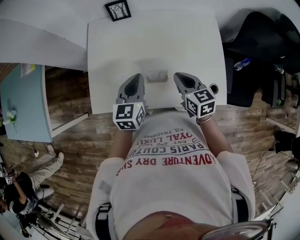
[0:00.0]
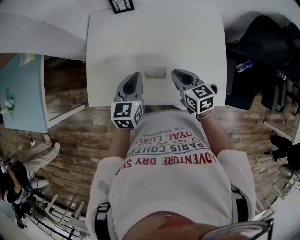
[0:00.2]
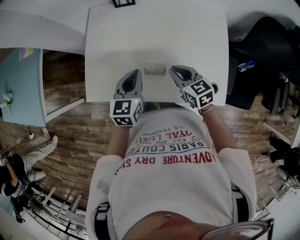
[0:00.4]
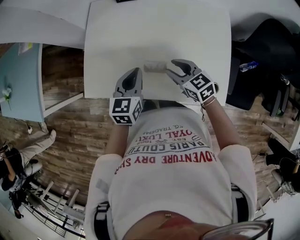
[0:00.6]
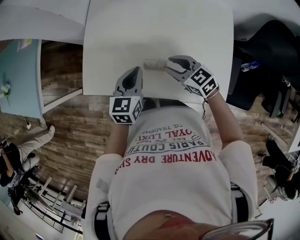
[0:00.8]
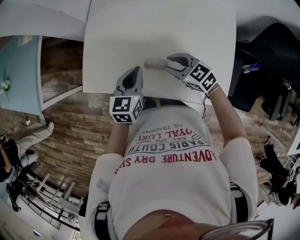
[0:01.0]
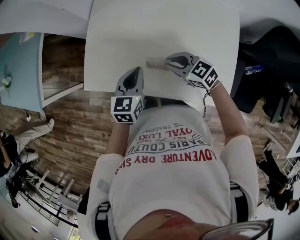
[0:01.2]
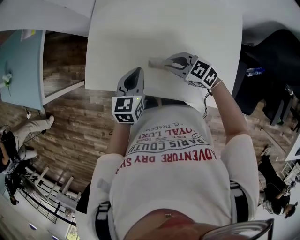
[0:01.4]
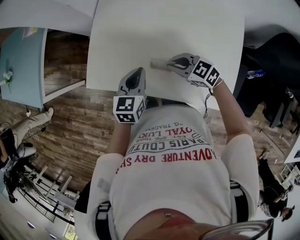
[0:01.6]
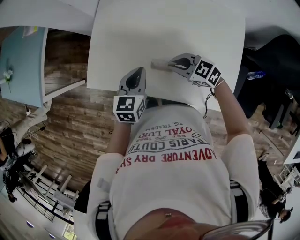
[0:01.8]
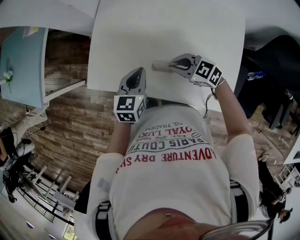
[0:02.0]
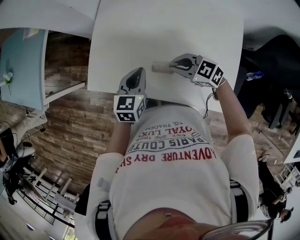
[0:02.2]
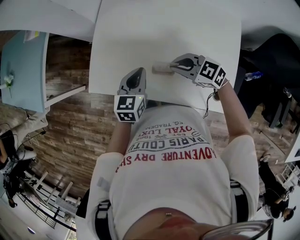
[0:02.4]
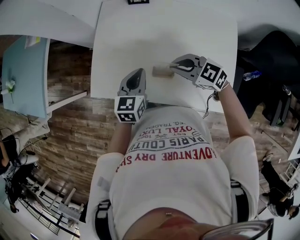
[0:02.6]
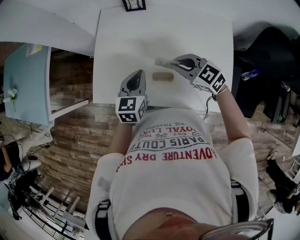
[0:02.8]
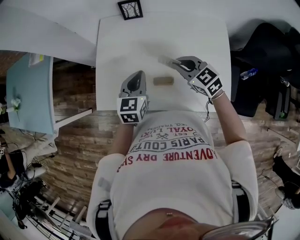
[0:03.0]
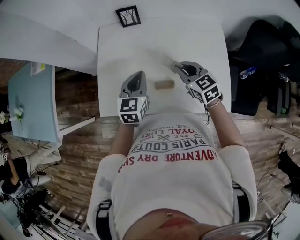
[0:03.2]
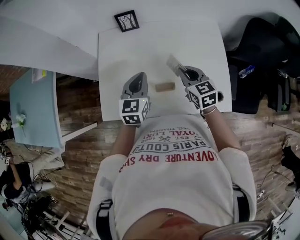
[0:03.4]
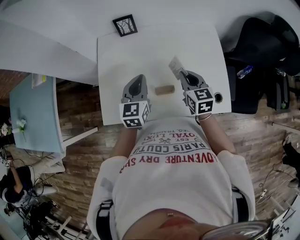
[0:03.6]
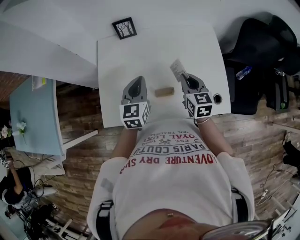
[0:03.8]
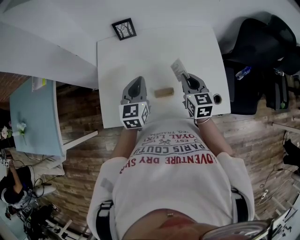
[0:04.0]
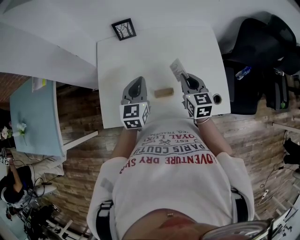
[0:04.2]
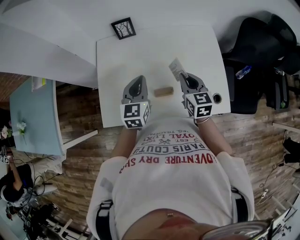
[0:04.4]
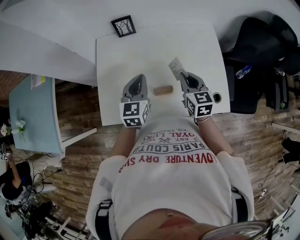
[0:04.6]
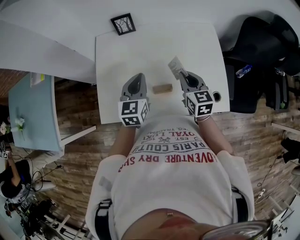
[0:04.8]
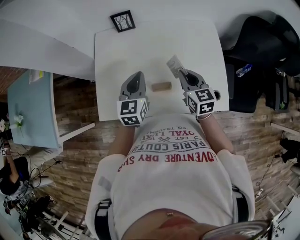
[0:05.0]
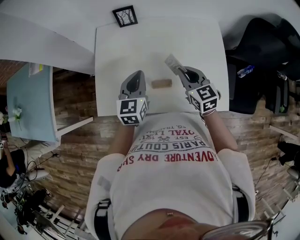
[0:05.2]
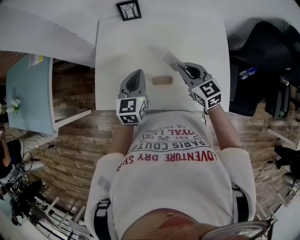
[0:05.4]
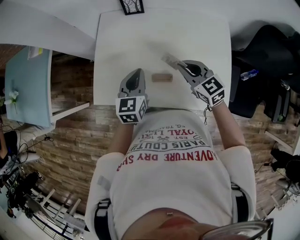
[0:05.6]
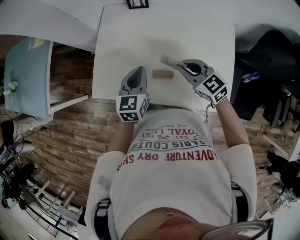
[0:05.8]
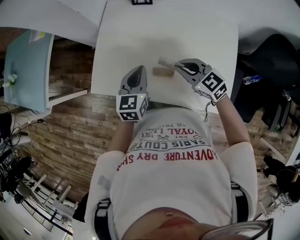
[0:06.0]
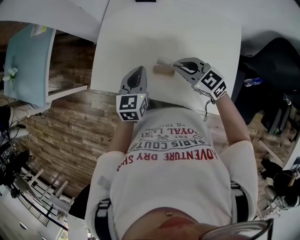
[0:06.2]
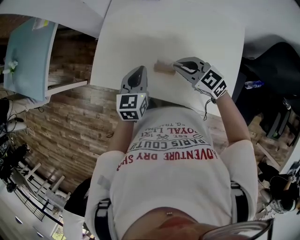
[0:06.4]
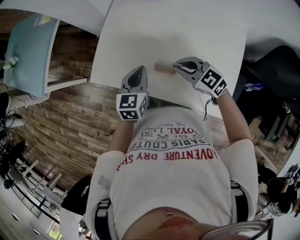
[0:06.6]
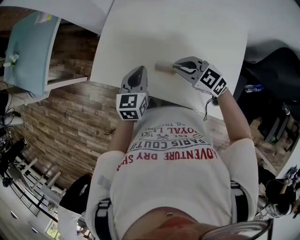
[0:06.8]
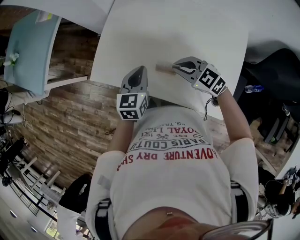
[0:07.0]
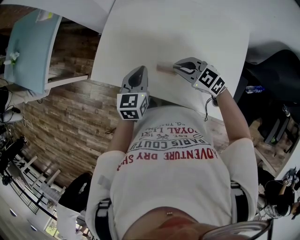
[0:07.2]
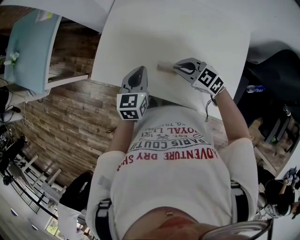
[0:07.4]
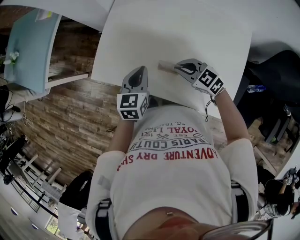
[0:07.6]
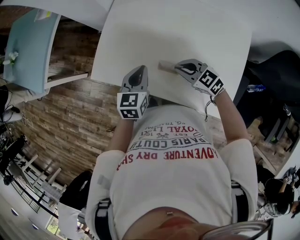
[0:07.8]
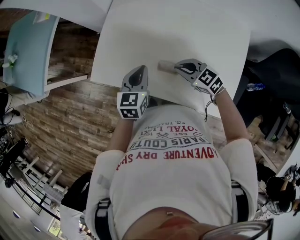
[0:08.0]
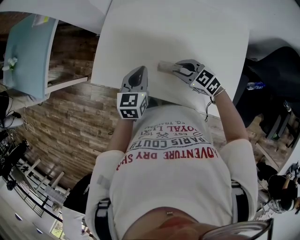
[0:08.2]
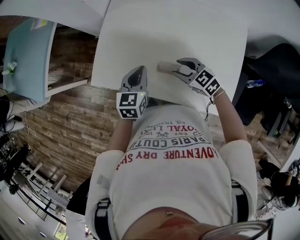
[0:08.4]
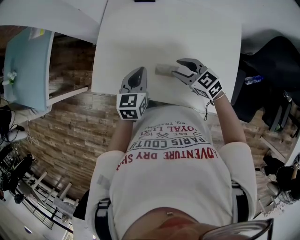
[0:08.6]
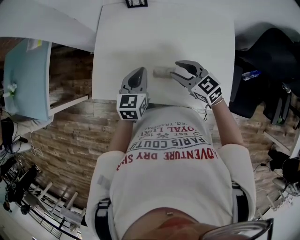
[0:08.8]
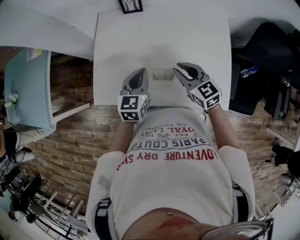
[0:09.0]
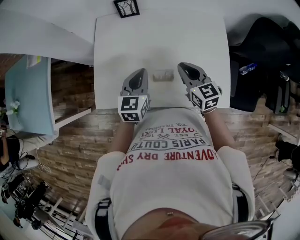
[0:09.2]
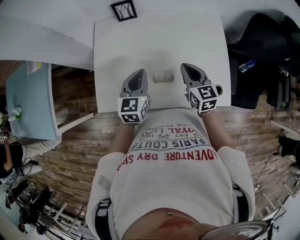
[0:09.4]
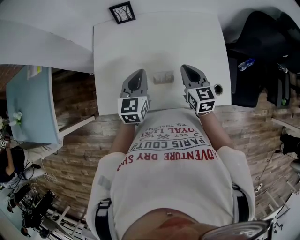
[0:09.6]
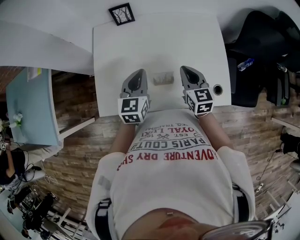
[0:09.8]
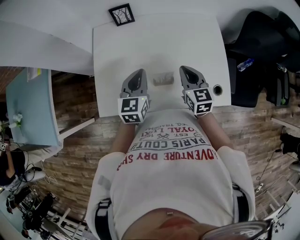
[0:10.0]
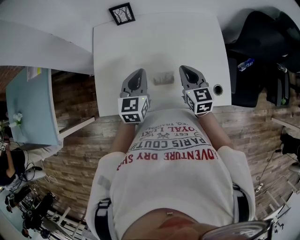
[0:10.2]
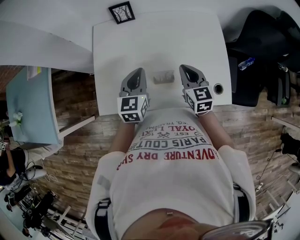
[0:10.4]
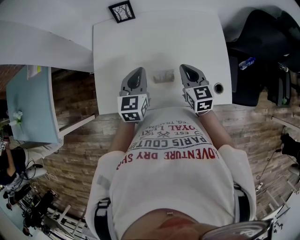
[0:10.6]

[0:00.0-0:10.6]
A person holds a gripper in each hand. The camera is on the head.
0.0 to 1.6 s: Both grippers travel together downward, about 5 cm. The right gripper changes its angle by roughly 60 degrees, and opens, then closes once more.
1.6 to 3.0 s: The left gripper is displaced upward by some 5 cm. The right gripper goes roughly 10 cm upward, and rotates approximately 30 degrees.
3.0 to 4.6 s: The right gripper shifts about 5 cm to the right, and rotates some 40 degrees.
4.6 to 6.0 s: The left gripper shifts by approximately 5 cm; the right gripper shifts by about 5 cm, and swivels about 50 degrees.
6.0 to 7.6 s: The right gripper travels downward by roughly 5 cm.
7.6 to 9.0 s: The right gripper moves upward, about 5 cm, and changes its angle by roughly 40 degrees; the left gripper shifts by approximately 5 cm.
9.0 to 10.6 s: The right gripper turns by some 30 degrees.

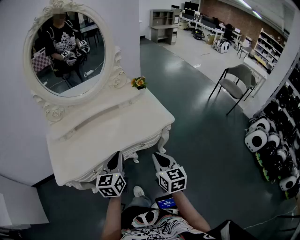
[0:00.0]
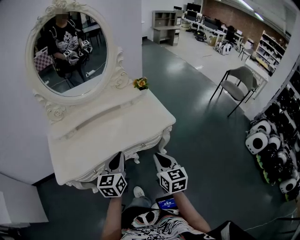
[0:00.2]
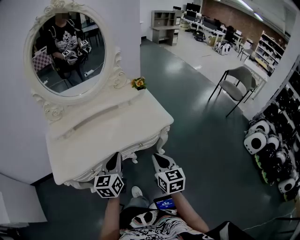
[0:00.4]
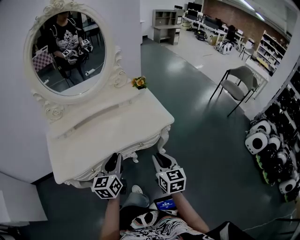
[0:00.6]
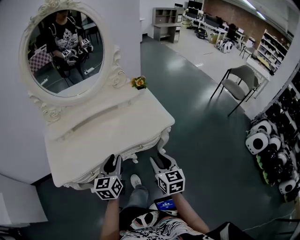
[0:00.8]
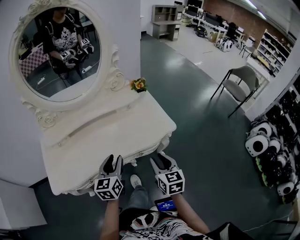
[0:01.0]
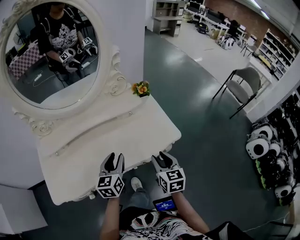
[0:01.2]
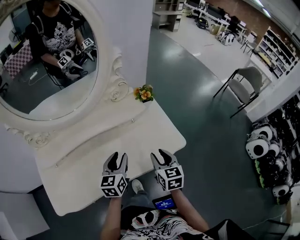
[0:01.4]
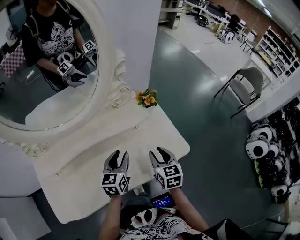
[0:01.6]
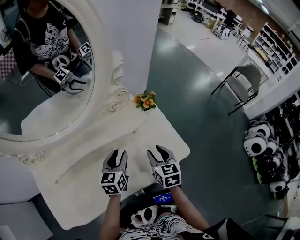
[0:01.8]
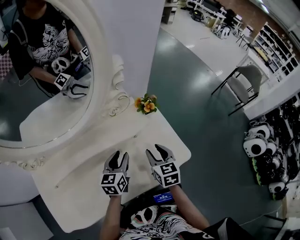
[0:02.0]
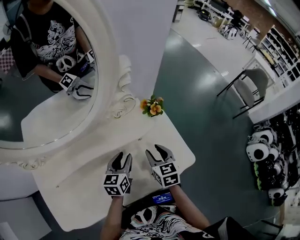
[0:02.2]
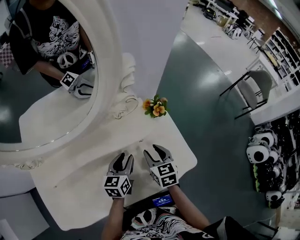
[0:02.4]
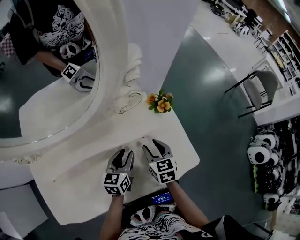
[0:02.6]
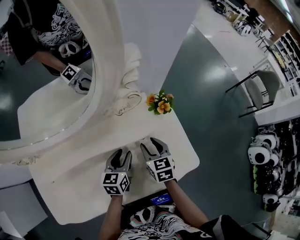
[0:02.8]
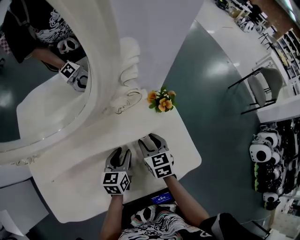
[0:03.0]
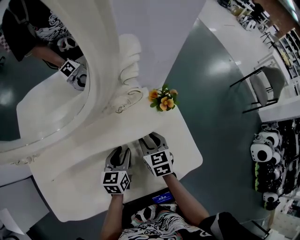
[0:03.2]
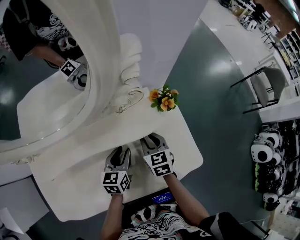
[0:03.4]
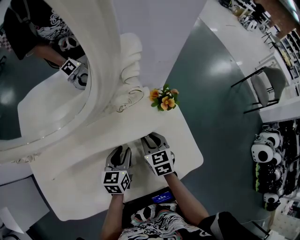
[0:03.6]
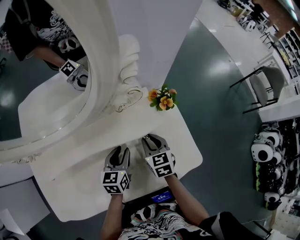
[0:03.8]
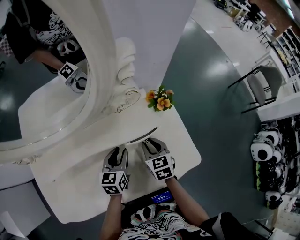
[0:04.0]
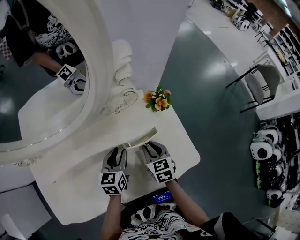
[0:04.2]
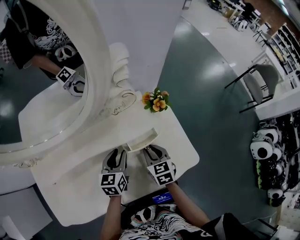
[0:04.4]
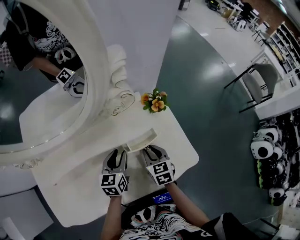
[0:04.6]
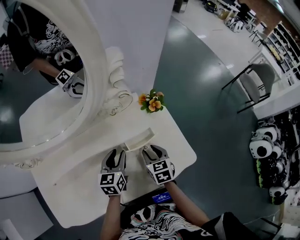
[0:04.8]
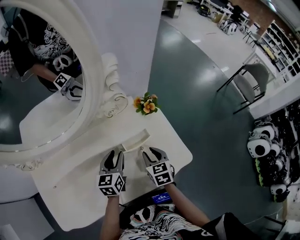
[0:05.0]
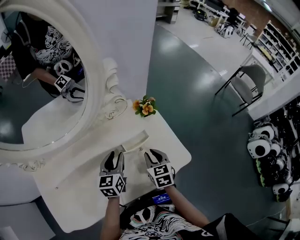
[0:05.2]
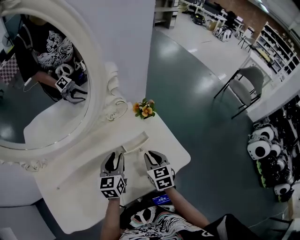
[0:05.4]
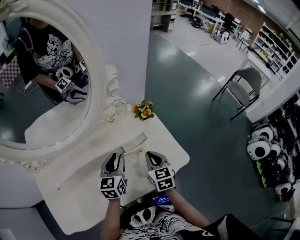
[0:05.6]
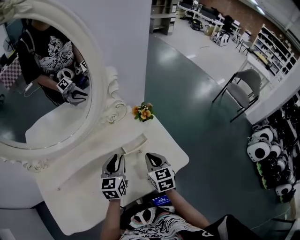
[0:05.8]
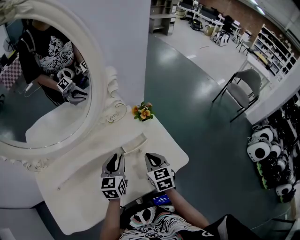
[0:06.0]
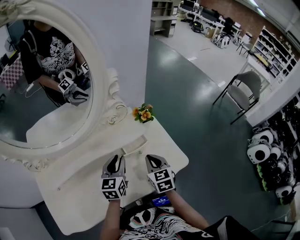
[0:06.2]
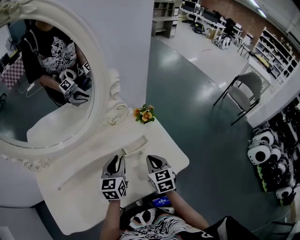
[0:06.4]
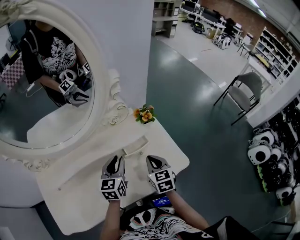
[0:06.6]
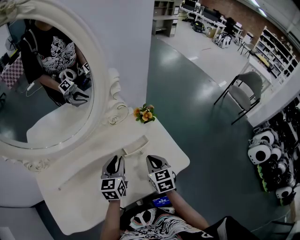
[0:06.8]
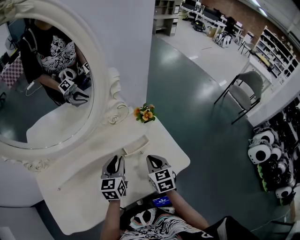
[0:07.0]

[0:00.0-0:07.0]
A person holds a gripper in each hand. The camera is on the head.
0.0 to 1.4 s: The grippers both shift forward by approximately 25 cm. The left gripper opens up. Meanwhile the right gripper opens.
1.4 to 2.8 s: The right gripper moves forward, downward and to the left, roughly 20 cm. Meanwhile the left gripper goes some 15 cm forward and downward.
2.8 to 4.2 s: The grippers make only small movements.
4.2 to 5.6 s: The grippers both shift upward by about 10 cm. The right gripper closes up.
5.6 to 7.0 s: The two grippers keep their place.

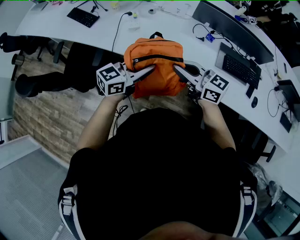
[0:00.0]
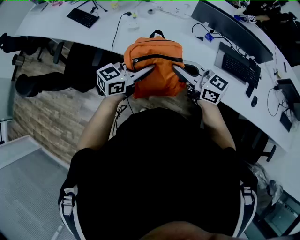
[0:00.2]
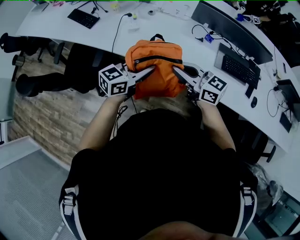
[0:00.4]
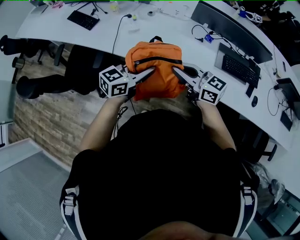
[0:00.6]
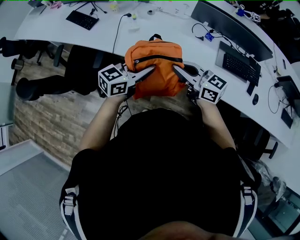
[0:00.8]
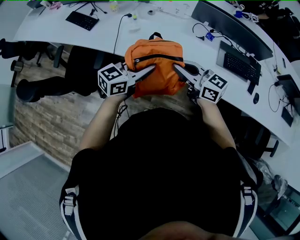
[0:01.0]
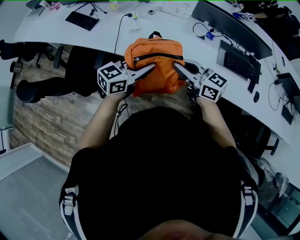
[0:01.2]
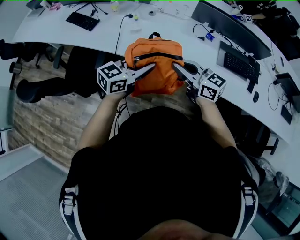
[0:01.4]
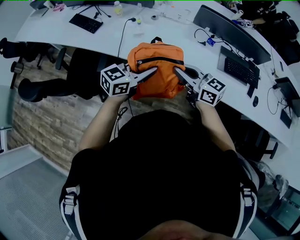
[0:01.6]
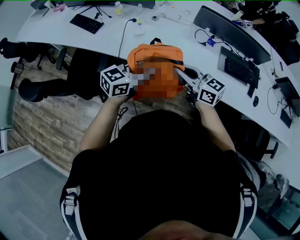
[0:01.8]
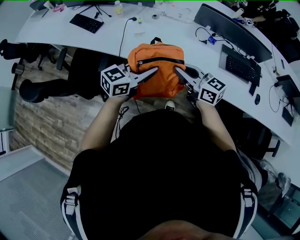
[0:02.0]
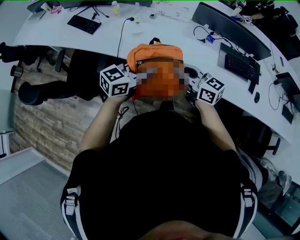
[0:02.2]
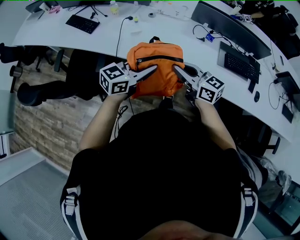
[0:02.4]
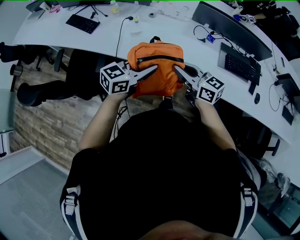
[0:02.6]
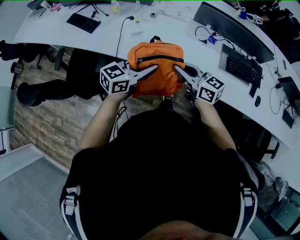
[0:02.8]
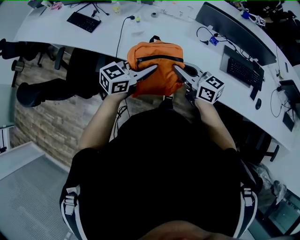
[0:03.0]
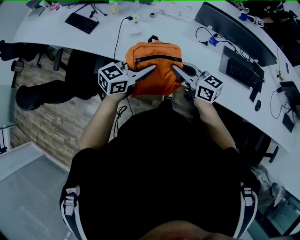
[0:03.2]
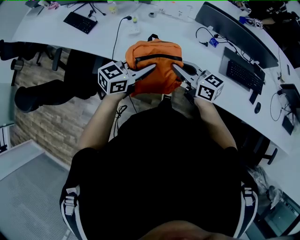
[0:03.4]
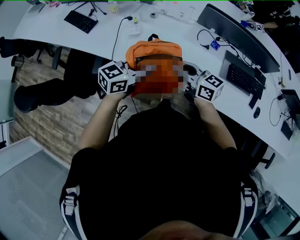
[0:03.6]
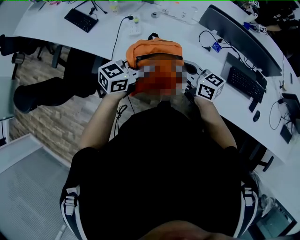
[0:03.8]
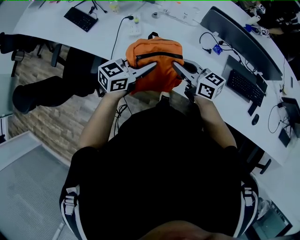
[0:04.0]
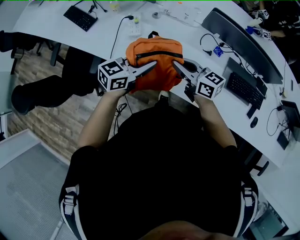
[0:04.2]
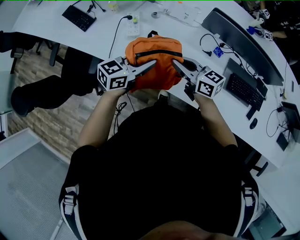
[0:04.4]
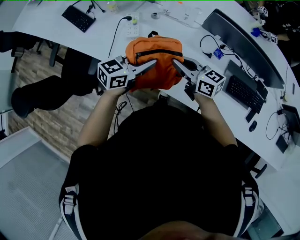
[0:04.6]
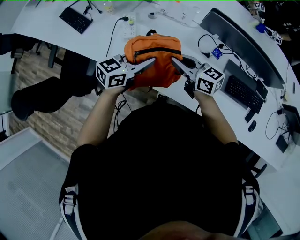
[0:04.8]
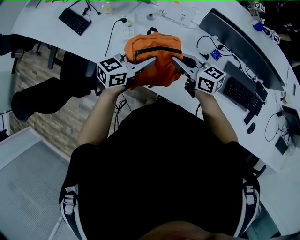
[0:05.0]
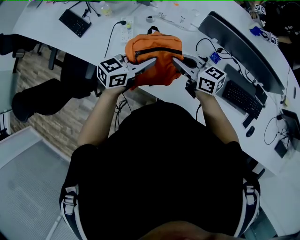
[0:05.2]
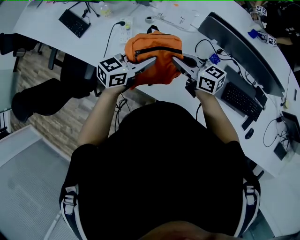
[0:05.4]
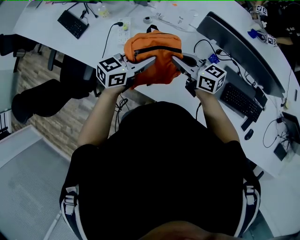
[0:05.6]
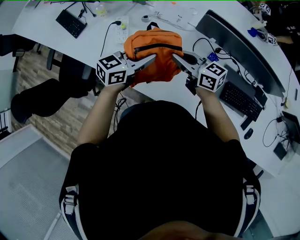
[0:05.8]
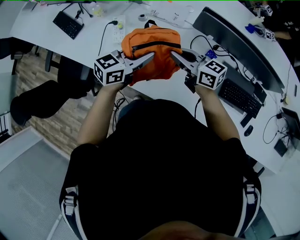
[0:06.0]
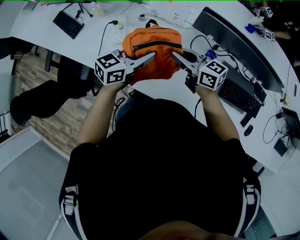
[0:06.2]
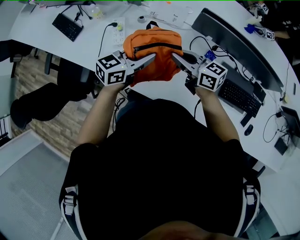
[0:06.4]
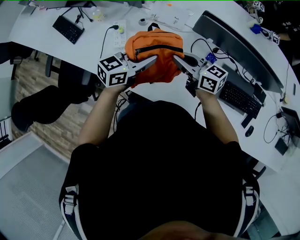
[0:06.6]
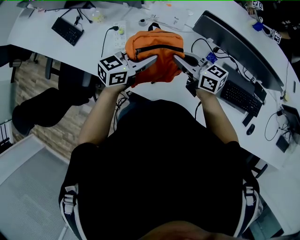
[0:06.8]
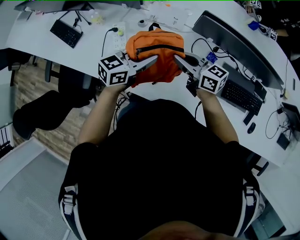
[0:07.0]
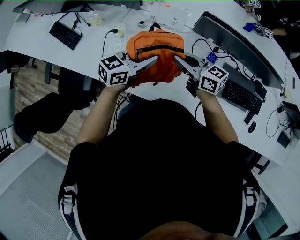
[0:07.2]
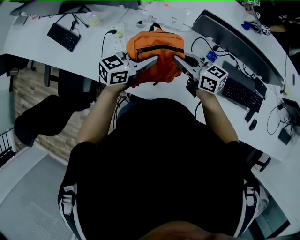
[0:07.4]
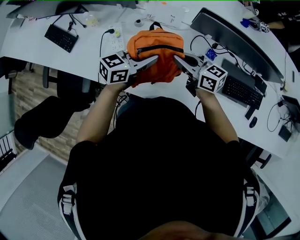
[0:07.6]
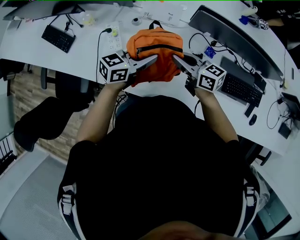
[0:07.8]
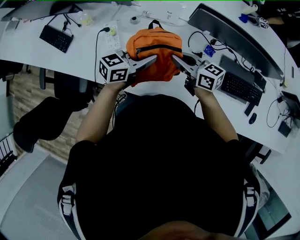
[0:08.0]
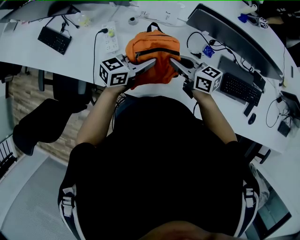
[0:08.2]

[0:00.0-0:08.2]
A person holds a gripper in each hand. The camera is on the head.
0.0 to 1.6 s: Both grippers move to the left, about 5 cm.
1.6 to 3.2 s: Both grippers travel together forward, roughly 10 cm.
3.2 to 5.0 s: The grippers both shift forward by about 20 cm.
5.0 to 6.6 s: The two grippers go about 5 cm forward.
6.6 to 8.2 s: The two grippers go about 5 cm downward.
